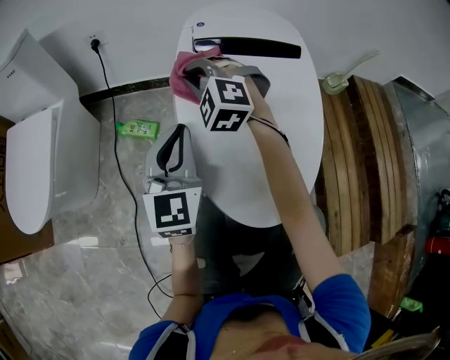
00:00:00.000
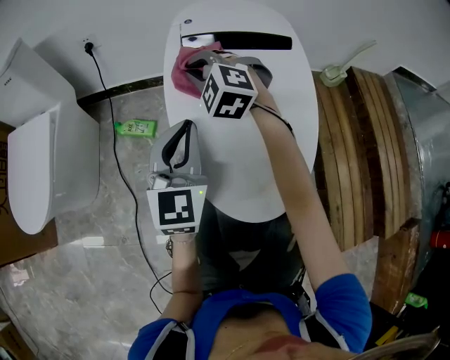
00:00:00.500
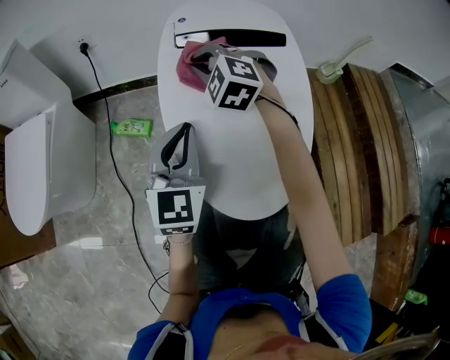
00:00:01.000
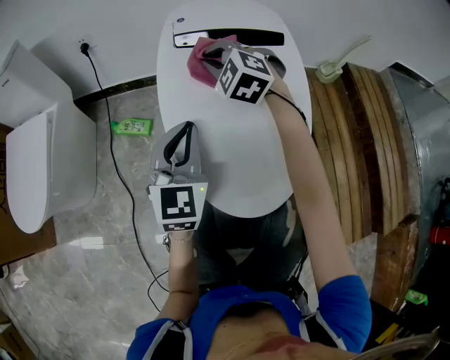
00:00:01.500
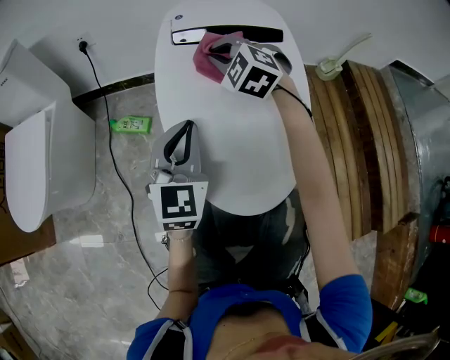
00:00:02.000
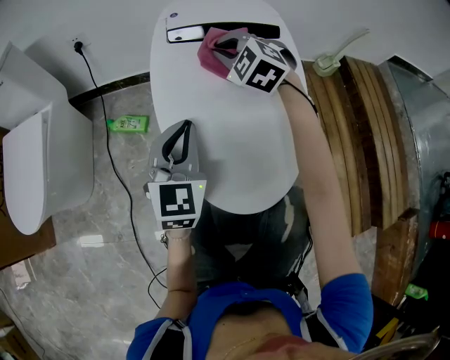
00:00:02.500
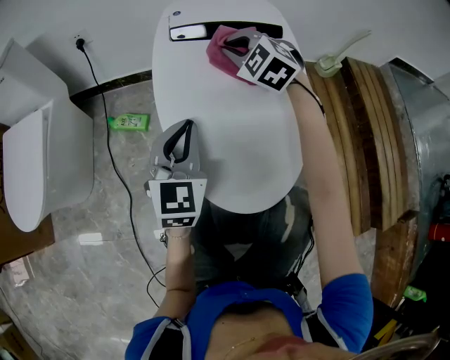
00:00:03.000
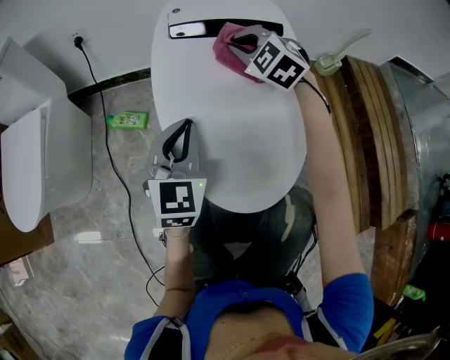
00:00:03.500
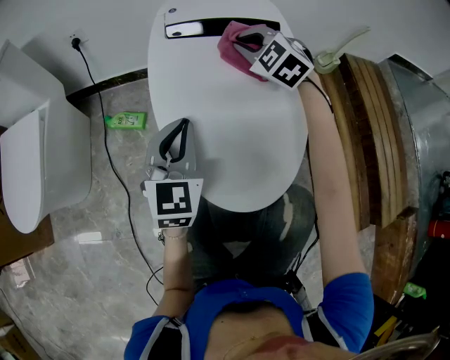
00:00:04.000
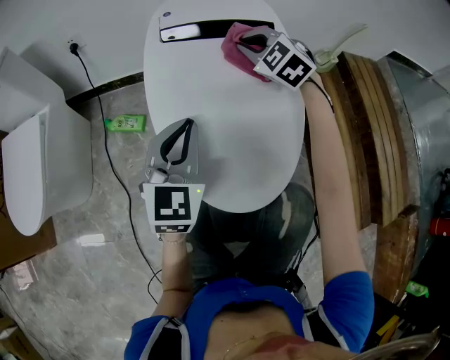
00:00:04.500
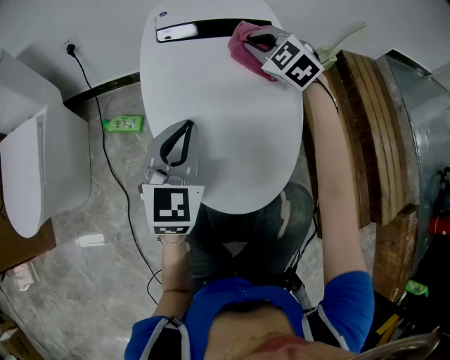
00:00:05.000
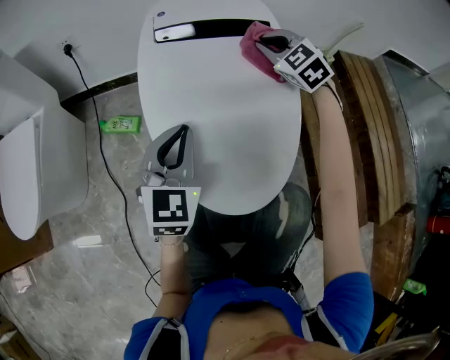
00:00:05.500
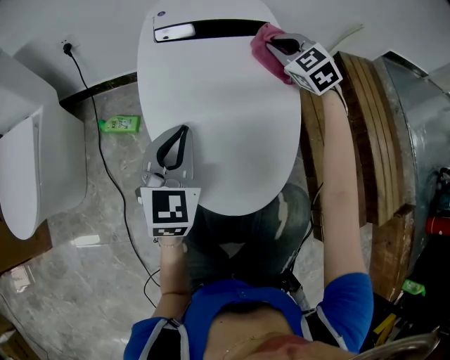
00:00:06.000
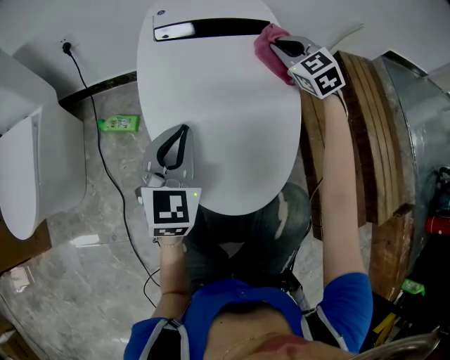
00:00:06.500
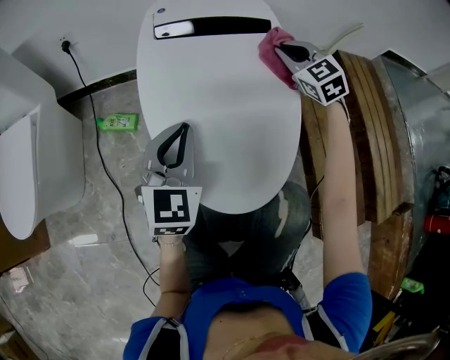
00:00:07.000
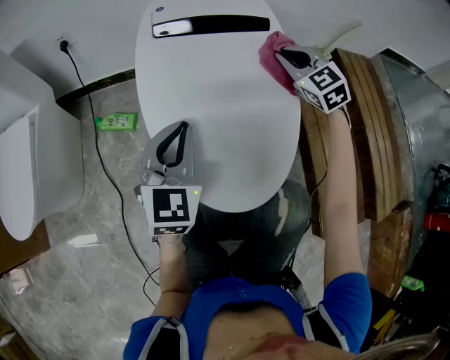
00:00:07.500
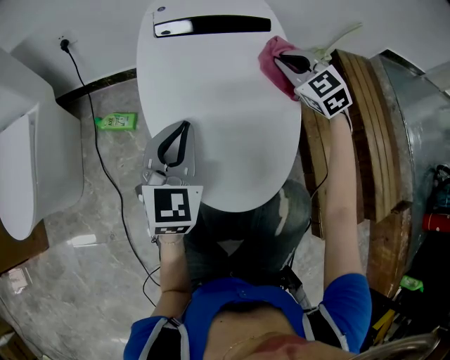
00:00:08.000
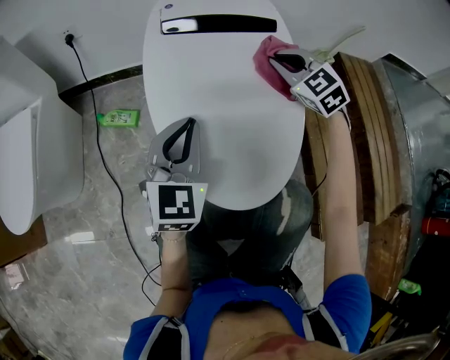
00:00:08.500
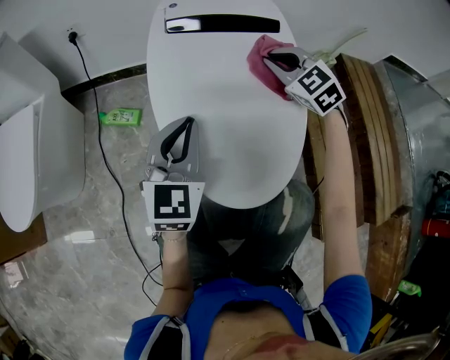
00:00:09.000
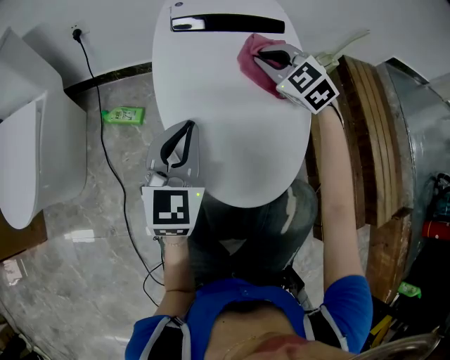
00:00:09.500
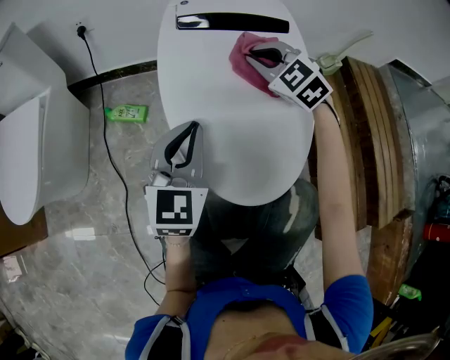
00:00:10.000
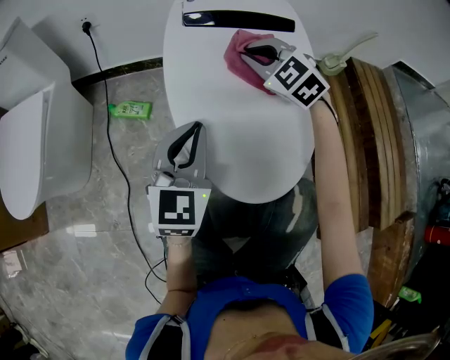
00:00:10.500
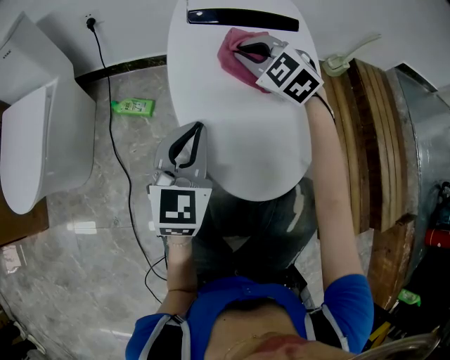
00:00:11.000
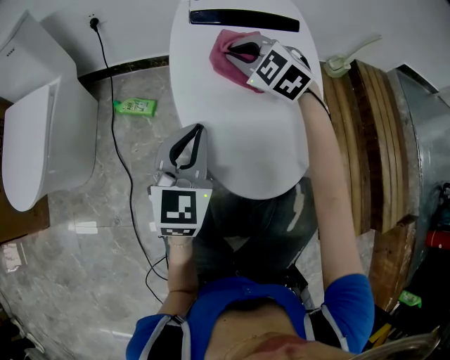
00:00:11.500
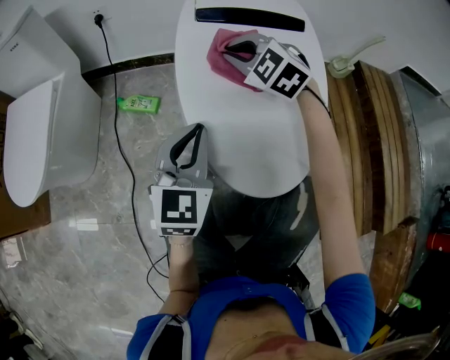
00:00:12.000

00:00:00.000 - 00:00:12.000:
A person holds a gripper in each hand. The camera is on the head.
00:00:00.000 - 00:00:02.000: The left gripper shifts about 5 cm to the right. Meanwhile the right gripper goes approximately 10 cm to the right.
00:00:02.000 - 00:00:04.000: The right gripper travels to the right by roughly 10 cm.
00:00:04.000 - 00:00:06.000: The right gripper moves to the right, about 10 cm.
00:00:06.000 - 00:00:08.000: The right gripper shifts roughly 5 cm backward.
00:00:08.000 - 00:00:10.000: The right gripper travels to the left by about 15 cm.
00:00:10.000 - 00:00:12.000: The right gripper heads to the left, covering about 10 cm.

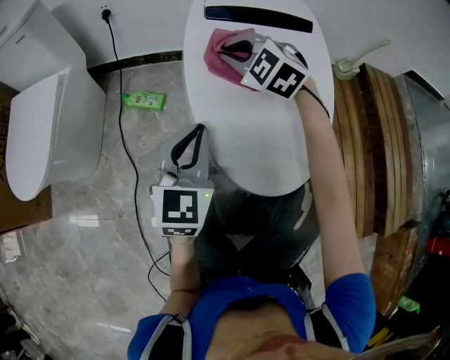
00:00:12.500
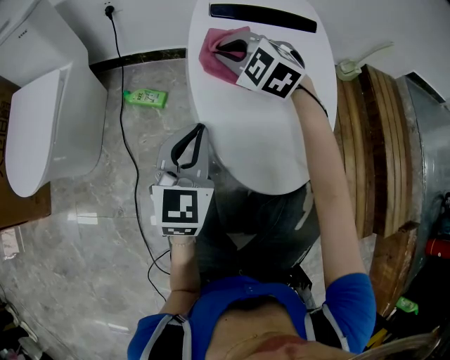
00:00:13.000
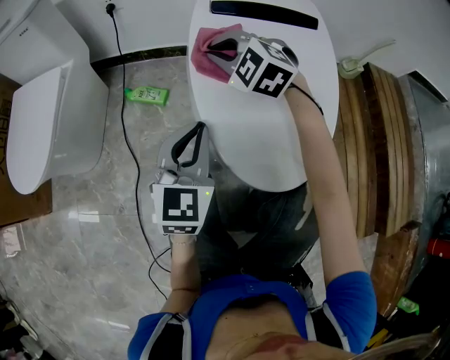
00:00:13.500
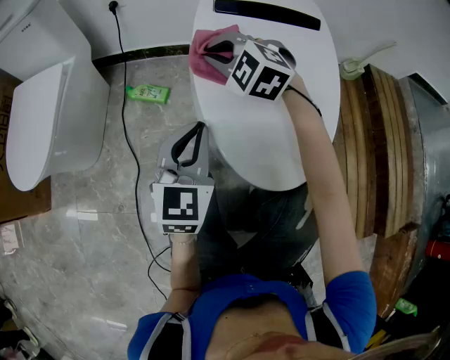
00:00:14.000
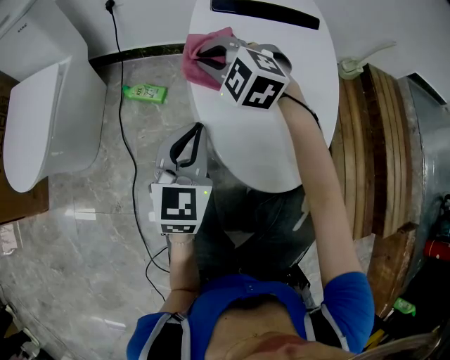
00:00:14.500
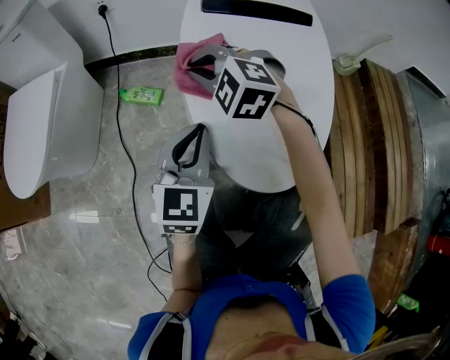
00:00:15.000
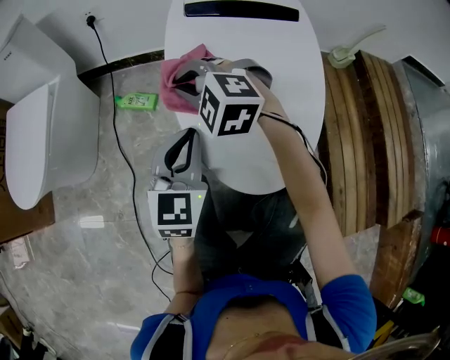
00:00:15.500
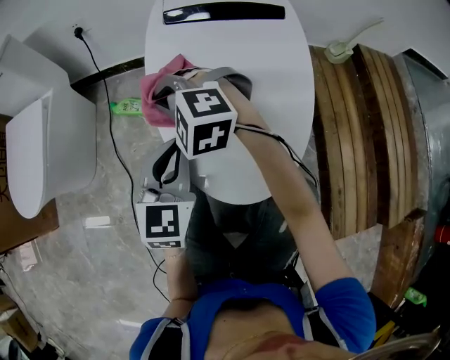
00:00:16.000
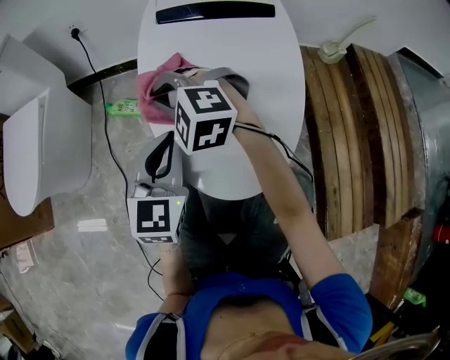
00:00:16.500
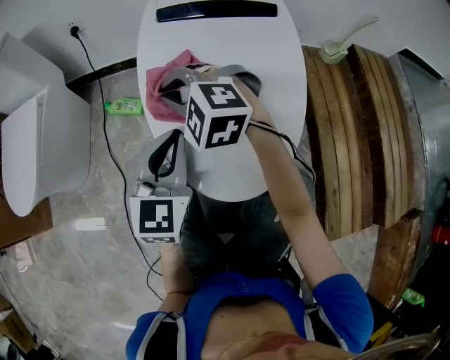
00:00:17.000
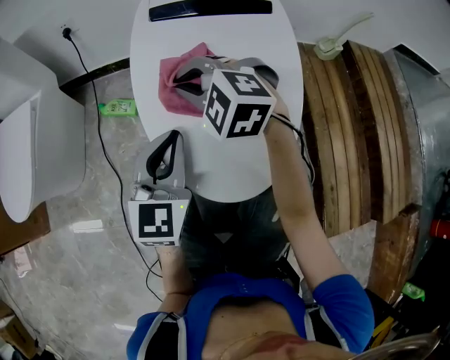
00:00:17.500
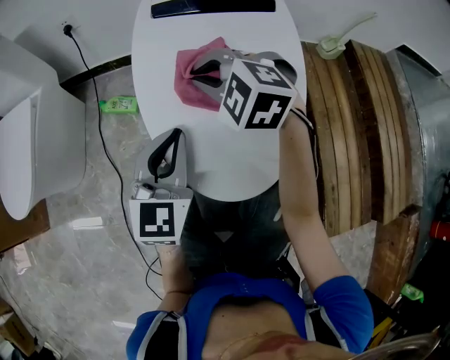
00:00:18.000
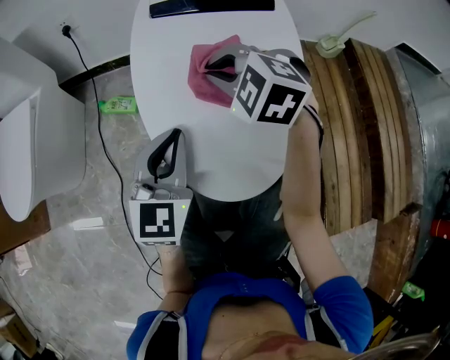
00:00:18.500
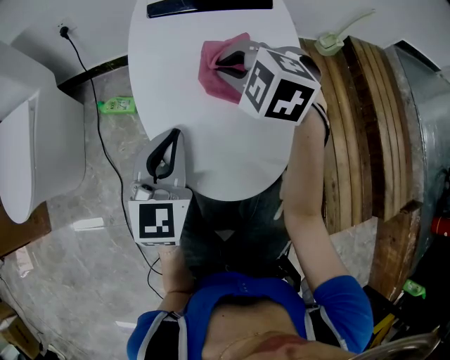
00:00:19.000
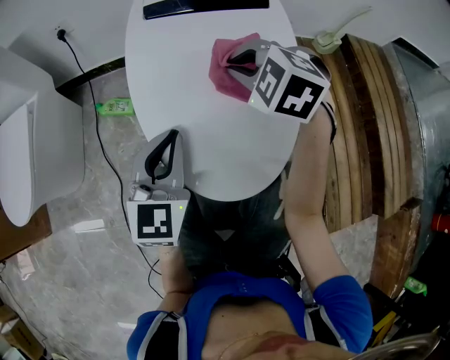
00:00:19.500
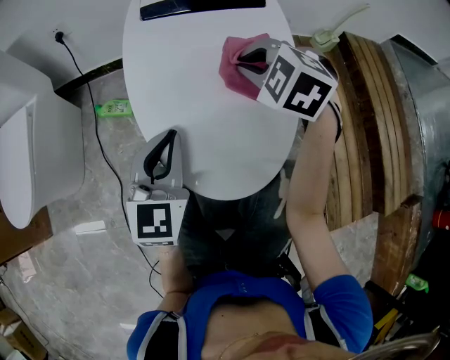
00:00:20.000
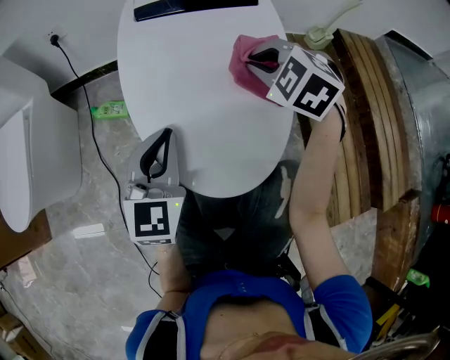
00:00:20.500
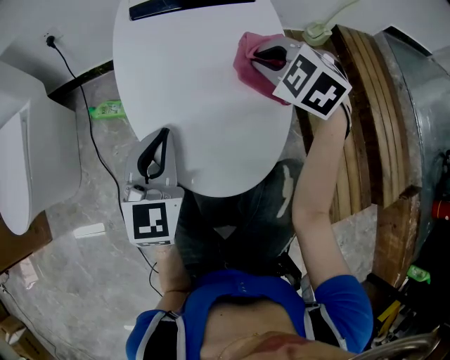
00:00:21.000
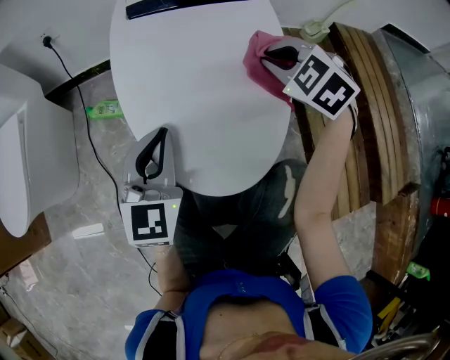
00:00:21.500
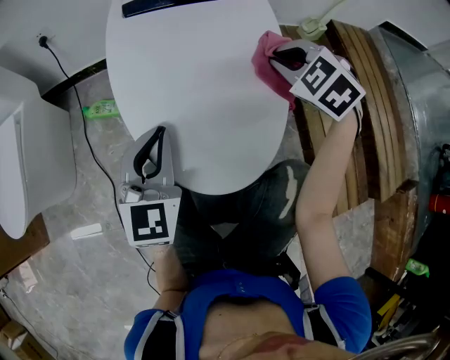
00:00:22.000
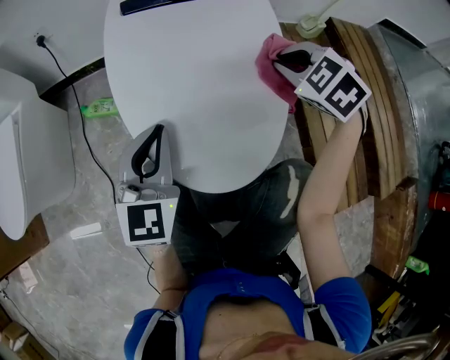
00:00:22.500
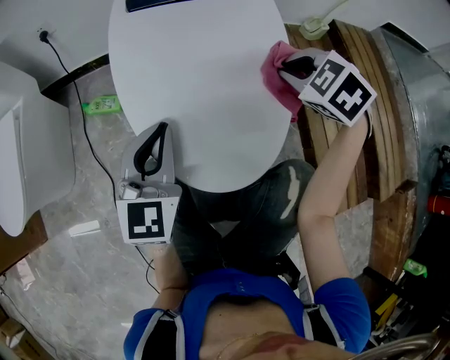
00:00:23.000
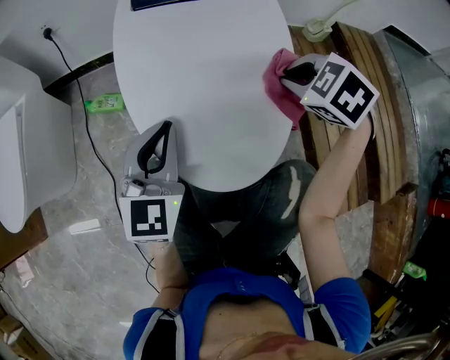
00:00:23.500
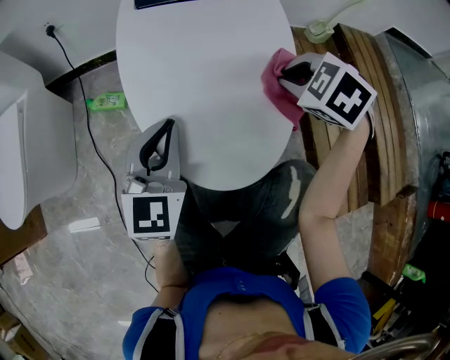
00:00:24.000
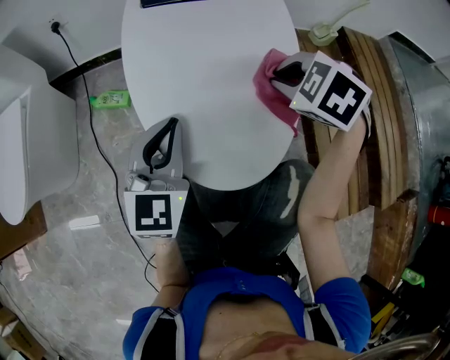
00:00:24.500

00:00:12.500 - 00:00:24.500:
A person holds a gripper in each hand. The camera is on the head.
00:00:12.500 - 00:00:14.500: The right gripper goes about 5 cm to the left.
00:00:14.500 - 00:00:16.500: The left gripper shifts some 5 cm to the right. Meanwhile the right gripper travels backward by about 5 cm.
00:00:16.500 - 00:00:18.500: The right gripper moves to the right, some 10 cm.
00:00:18.500 - 00:00:20.500: The right gripper travels to the right by approximately 10 cm.
00:00:20.500 - 00:00:22.500: The right gripper heads to the right, covering about 5 cm.
00:00:22.500 - 00:00:24.500: The right gripper shifts by some 5 cm.

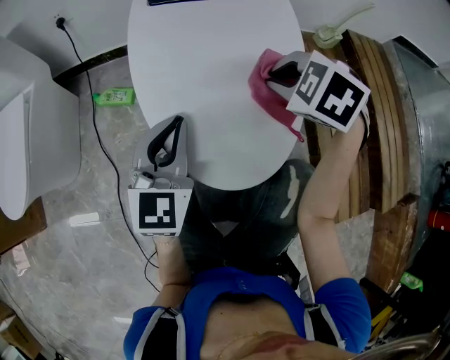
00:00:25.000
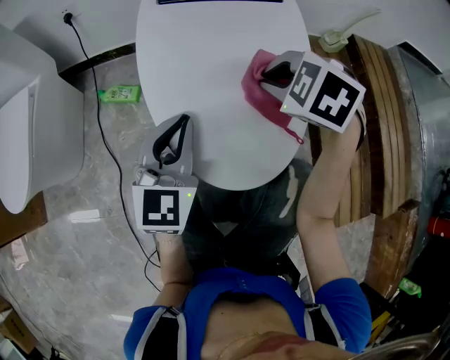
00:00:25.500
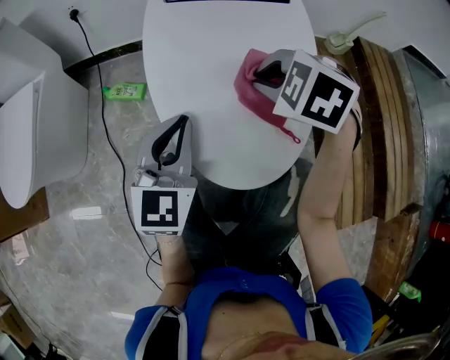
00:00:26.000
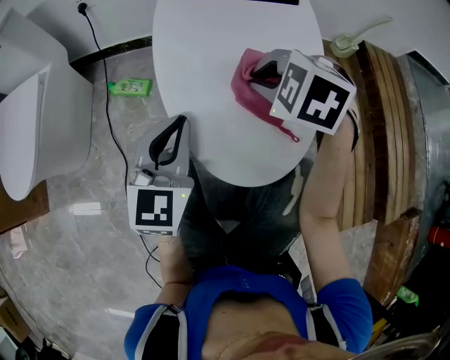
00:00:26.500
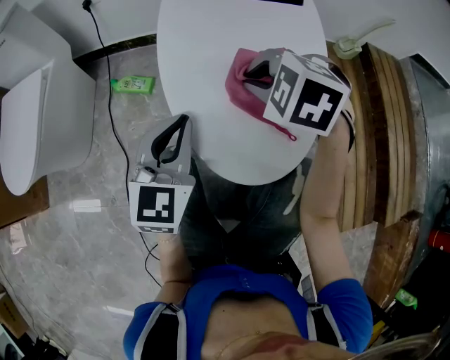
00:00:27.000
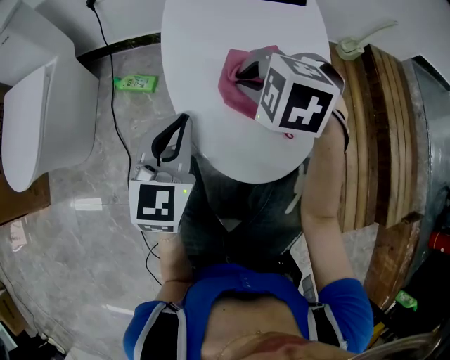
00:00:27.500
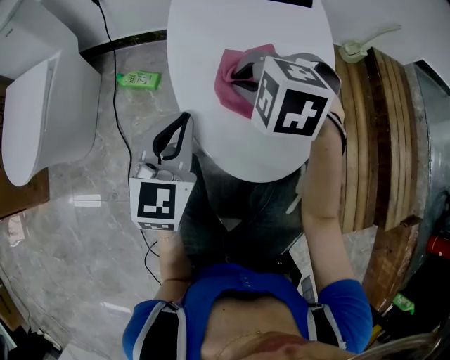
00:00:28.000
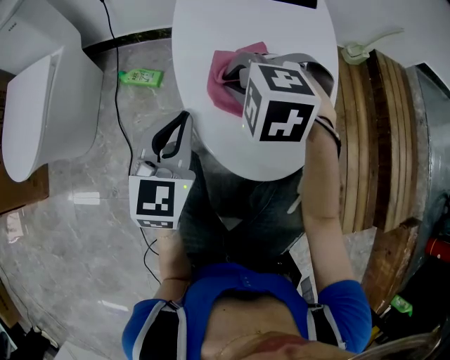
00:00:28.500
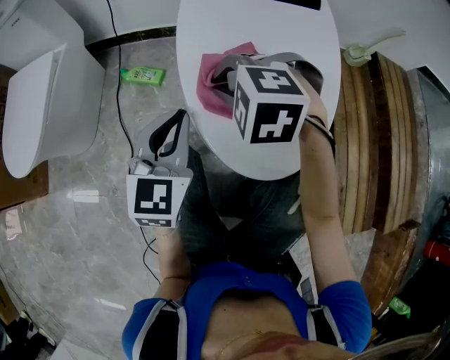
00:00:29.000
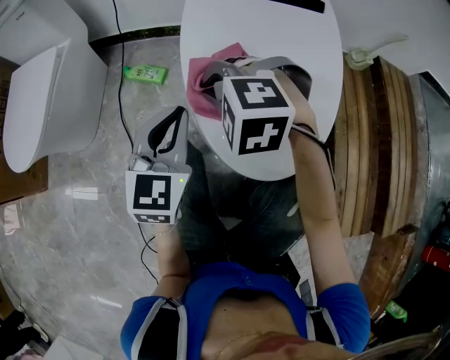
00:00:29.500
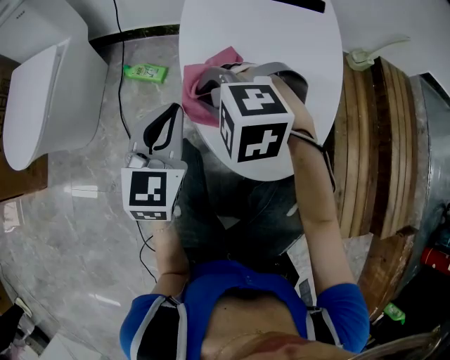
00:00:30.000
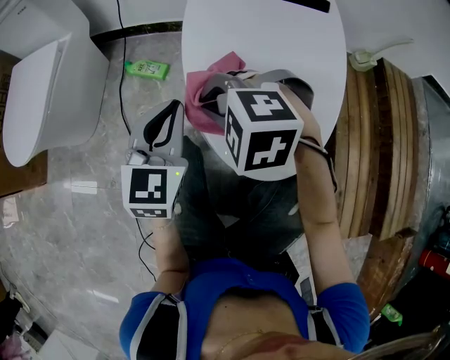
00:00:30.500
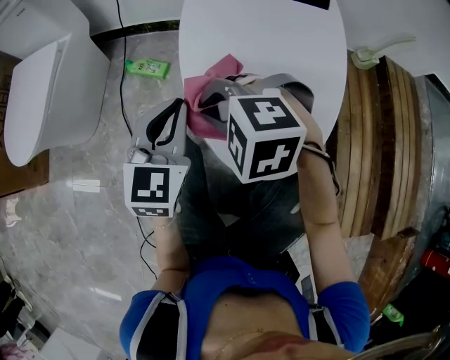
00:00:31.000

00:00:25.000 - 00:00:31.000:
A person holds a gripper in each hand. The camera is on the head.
00:00:25.000 - 00:00:27.000: The right gripper goes about 10 cm to the left.
00:00:27.000 - 00:00:29.000: The right gripper is displaced to the left by approximately 10 cm.
00:00:29.000 - 00:00:31.000: The right gripper moves about 5 cm.
